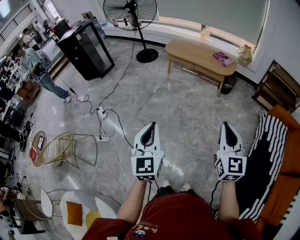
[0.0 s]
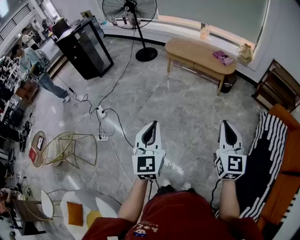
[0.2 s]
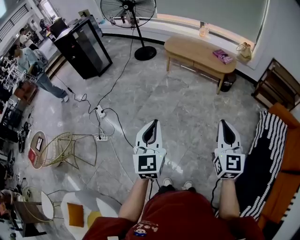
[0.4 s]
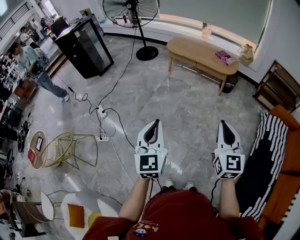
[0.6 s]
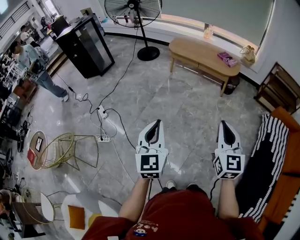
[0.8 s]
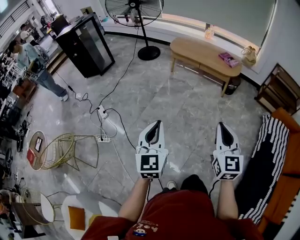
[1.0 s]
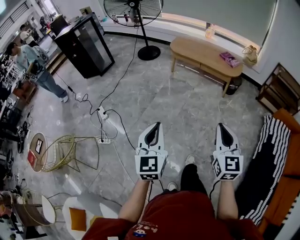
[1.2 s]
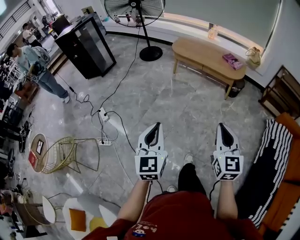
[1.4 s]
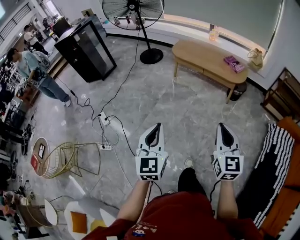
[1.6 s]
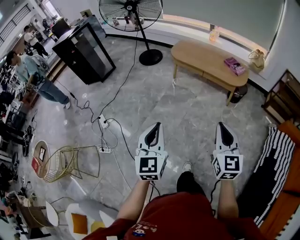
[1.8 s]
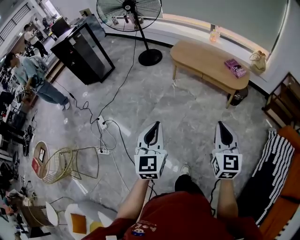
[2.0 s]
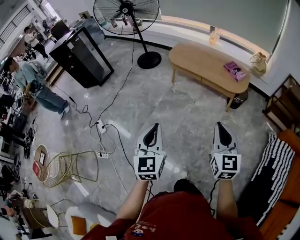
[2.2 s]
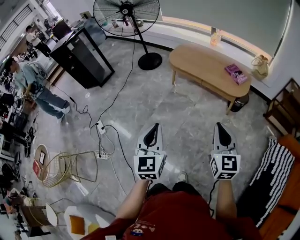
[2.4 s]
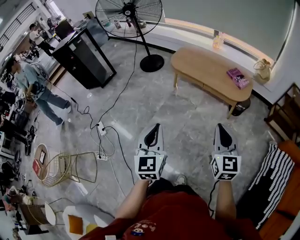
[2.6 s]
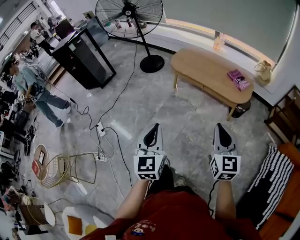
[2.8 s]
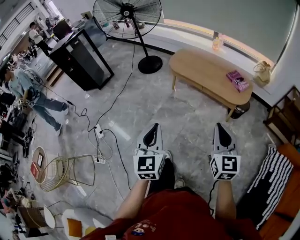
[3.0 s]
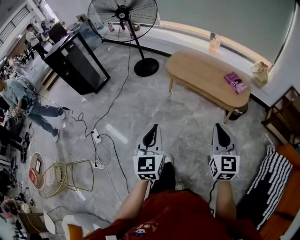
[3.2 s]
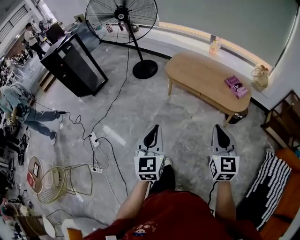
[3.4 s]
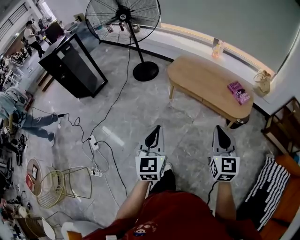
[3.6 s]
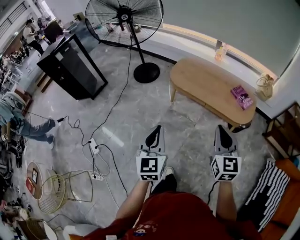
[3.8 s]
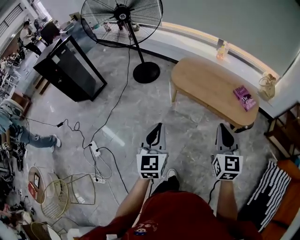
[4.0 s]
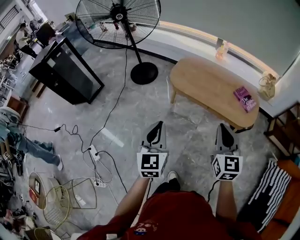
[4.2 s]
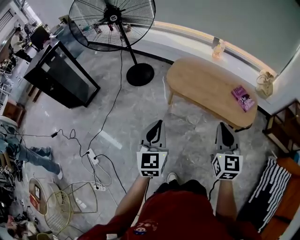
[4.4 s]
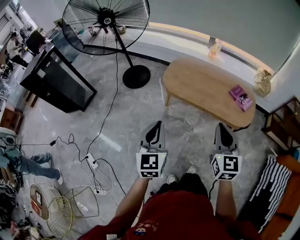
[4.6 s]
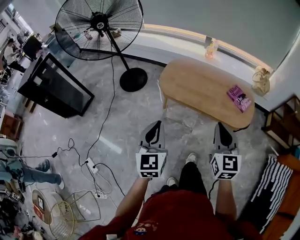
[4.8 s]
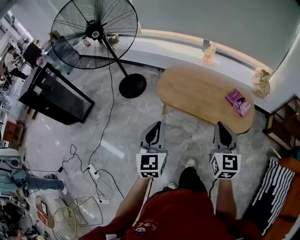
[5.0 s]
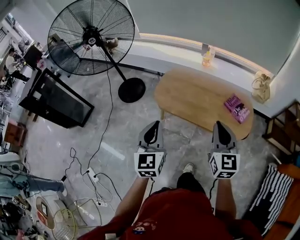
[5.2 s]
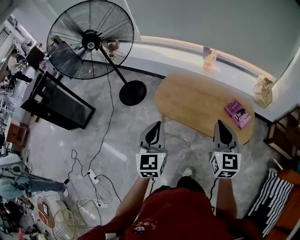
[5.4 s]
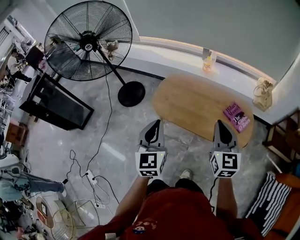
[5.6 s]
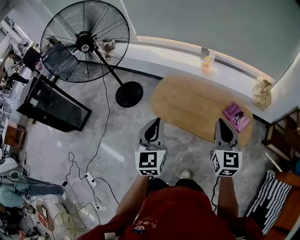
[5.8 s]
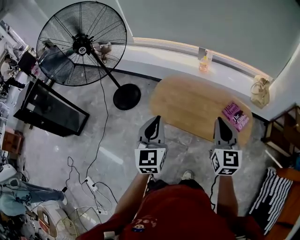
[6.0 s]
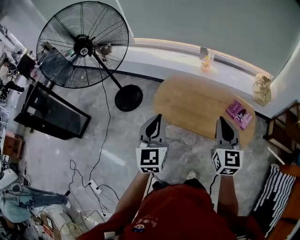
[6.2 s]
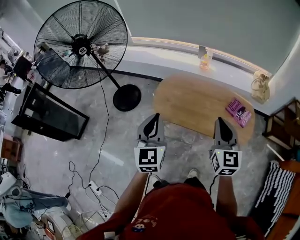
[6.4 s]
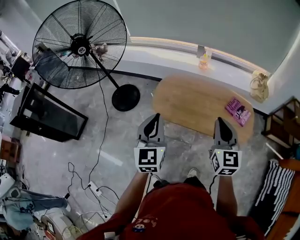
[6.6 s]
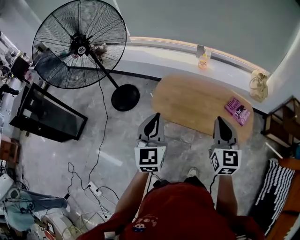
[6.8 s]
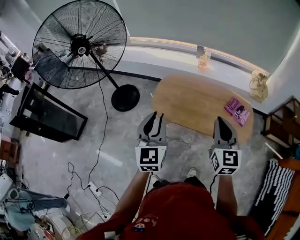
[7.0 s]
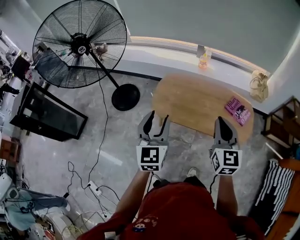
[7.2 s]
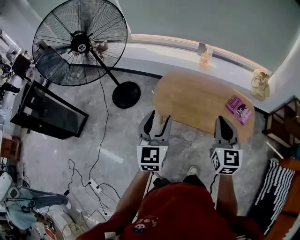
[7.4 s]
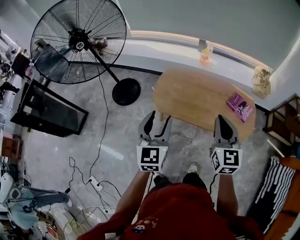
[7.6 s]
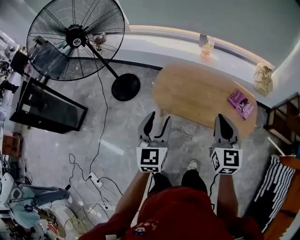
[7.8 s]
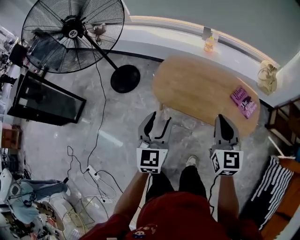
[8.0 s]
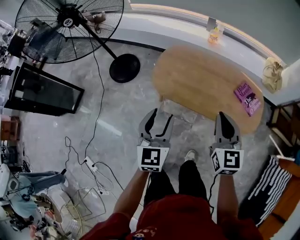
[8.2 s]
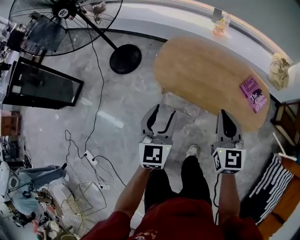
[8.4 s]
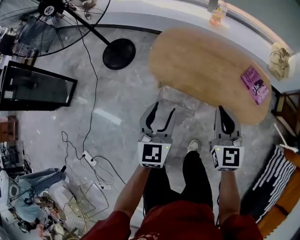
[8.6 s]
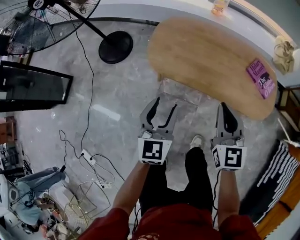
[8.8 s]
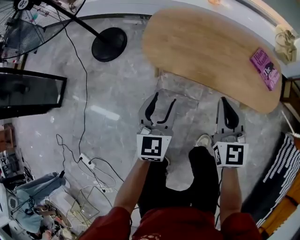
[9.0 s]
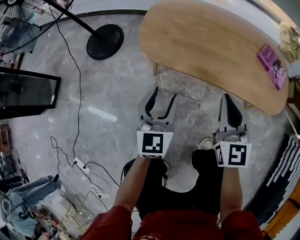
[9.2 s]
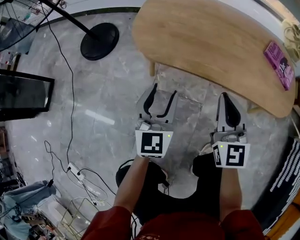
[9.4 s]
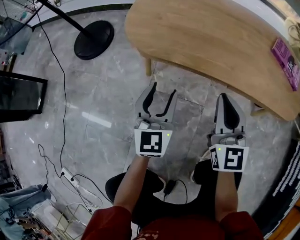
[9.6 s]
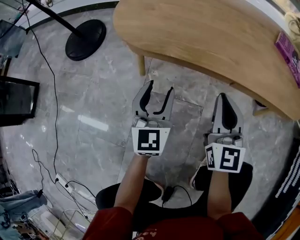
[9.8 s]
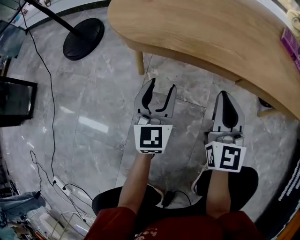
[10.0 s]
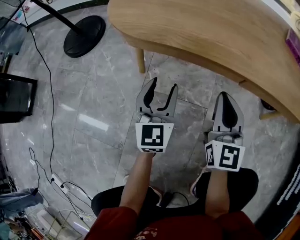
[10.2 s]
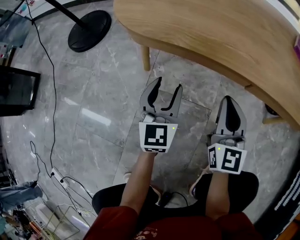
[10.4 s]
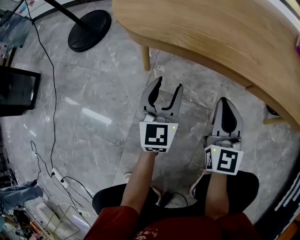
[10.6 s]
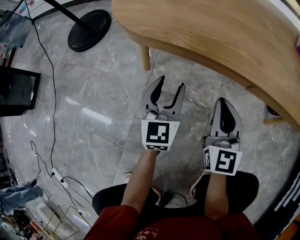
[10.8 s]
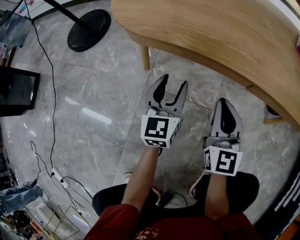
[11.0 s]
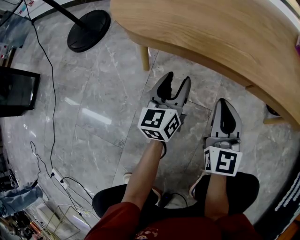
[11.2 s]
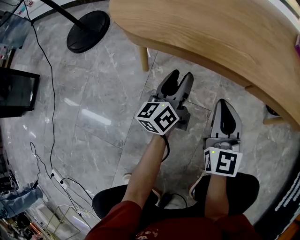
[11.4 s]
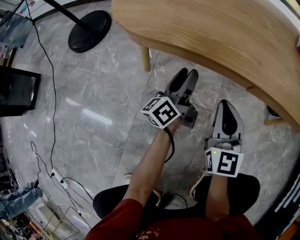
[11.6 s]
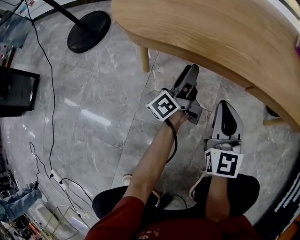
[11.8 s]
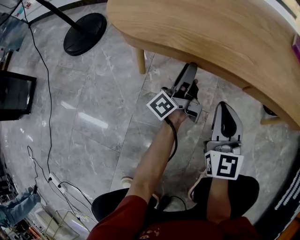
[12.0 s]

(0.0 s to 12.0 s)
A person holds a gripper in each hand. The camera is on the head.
0.0 s - 1.6 s: The right gripper travels forward and to the left by approximately 20 cm, while the left gripper shifts about 15 cm forward.
1.6 s - 3.0 s: Both grippers travel together forward, approximately 25 cm.
3.0 s - 4.4 s: The grippers both shift forward by some 35 cm.
4.4 s - 6.0 s: The grippers both shift forward and to the right by some 30 cm.
6.0 s - 7.6 s: The left gripper opens its fingers; the right gripper heads to the left, covering some 5 cm.
7.6 s - 9.0 s: Both grippers move downward, about 30 cm.
9.0 s - 10.4 s: Both grippers move downward, roughly 40 cm.
10.4 s - 12.0 s: The left gripper goes some 10 cm forward and to the right, and rolls counterclockwise, seen from behind, by about 80 degrees.

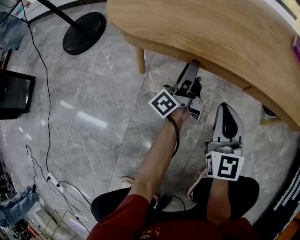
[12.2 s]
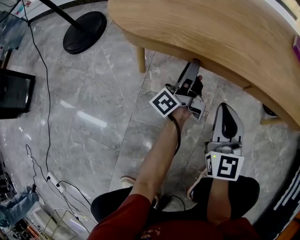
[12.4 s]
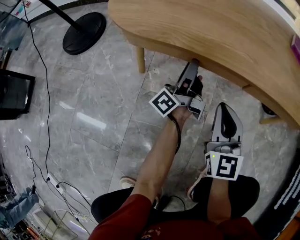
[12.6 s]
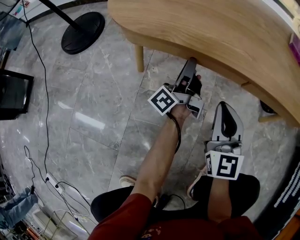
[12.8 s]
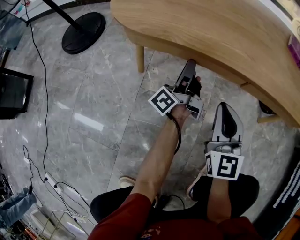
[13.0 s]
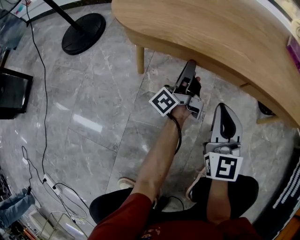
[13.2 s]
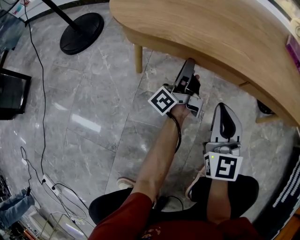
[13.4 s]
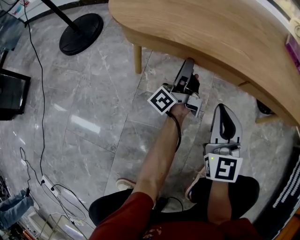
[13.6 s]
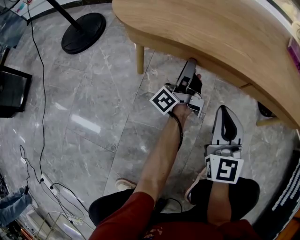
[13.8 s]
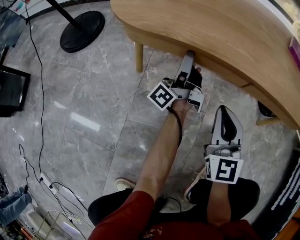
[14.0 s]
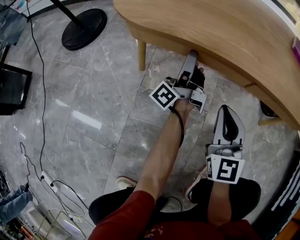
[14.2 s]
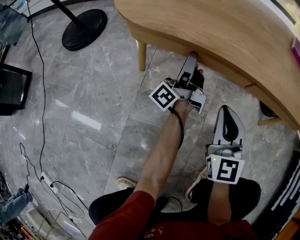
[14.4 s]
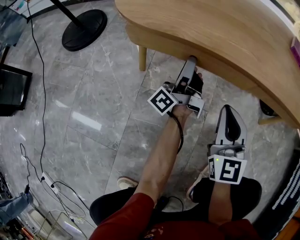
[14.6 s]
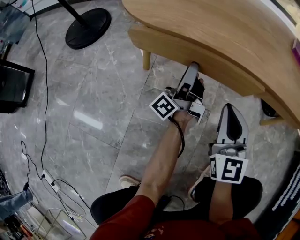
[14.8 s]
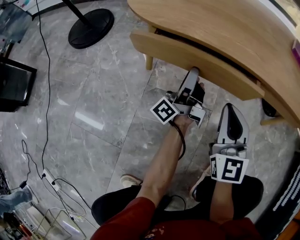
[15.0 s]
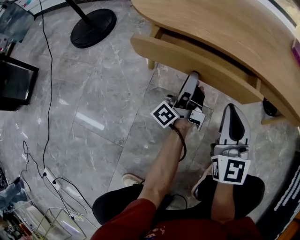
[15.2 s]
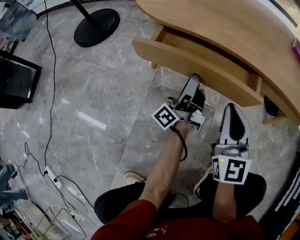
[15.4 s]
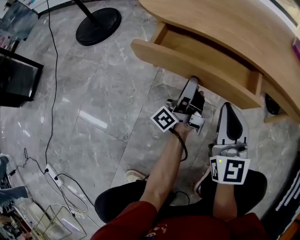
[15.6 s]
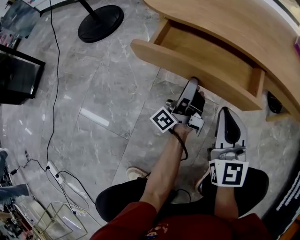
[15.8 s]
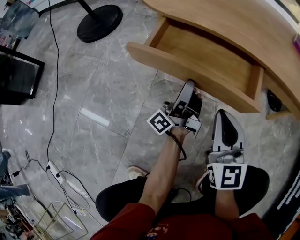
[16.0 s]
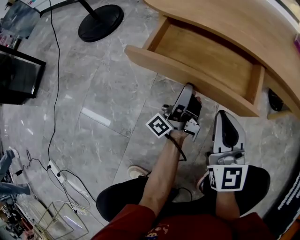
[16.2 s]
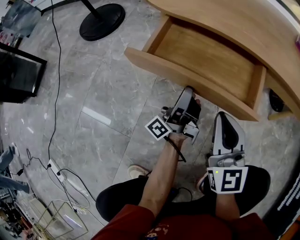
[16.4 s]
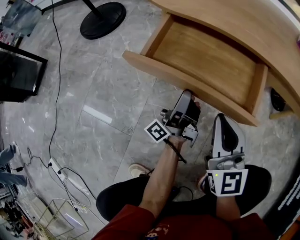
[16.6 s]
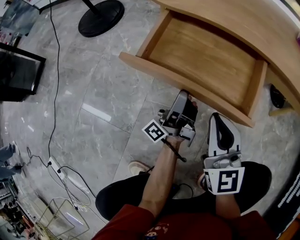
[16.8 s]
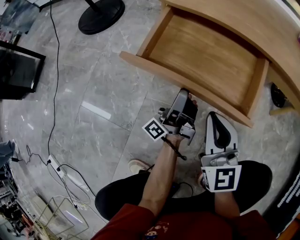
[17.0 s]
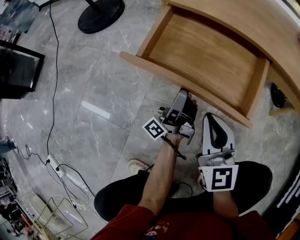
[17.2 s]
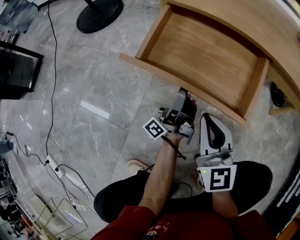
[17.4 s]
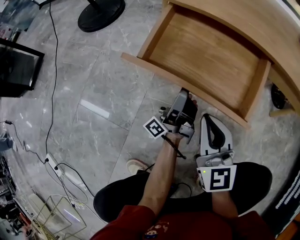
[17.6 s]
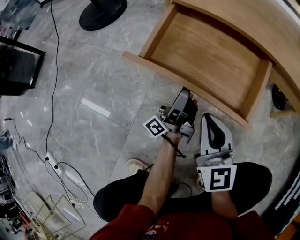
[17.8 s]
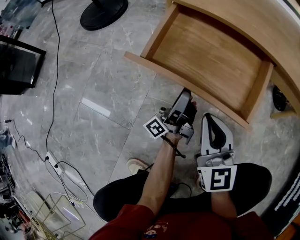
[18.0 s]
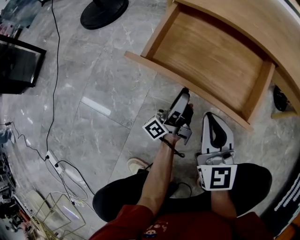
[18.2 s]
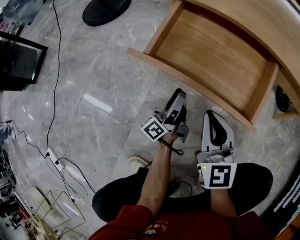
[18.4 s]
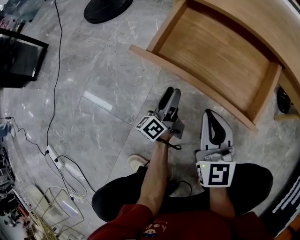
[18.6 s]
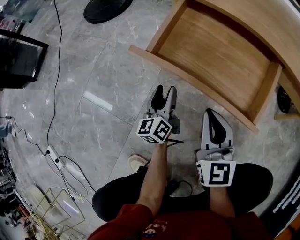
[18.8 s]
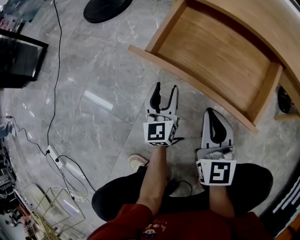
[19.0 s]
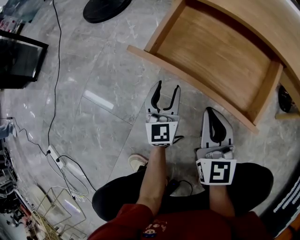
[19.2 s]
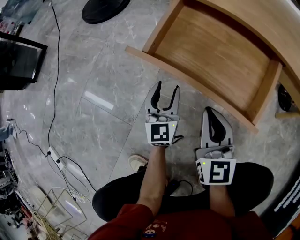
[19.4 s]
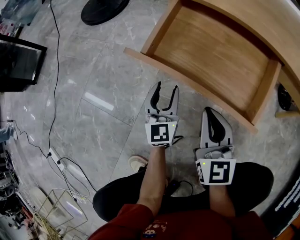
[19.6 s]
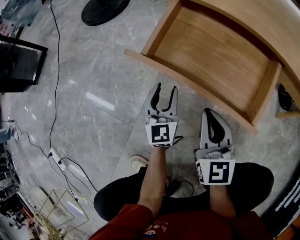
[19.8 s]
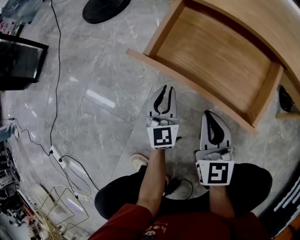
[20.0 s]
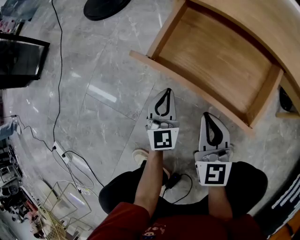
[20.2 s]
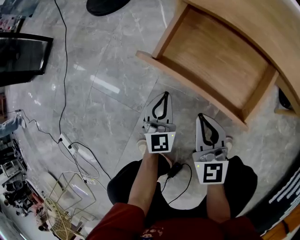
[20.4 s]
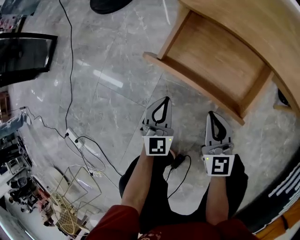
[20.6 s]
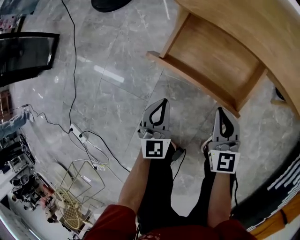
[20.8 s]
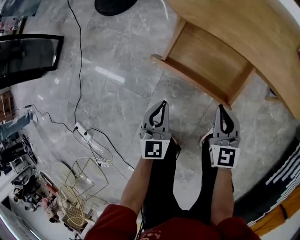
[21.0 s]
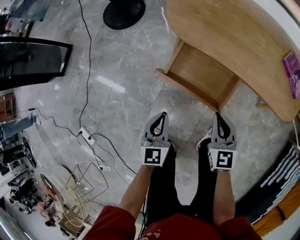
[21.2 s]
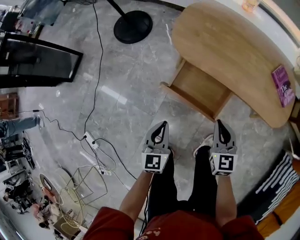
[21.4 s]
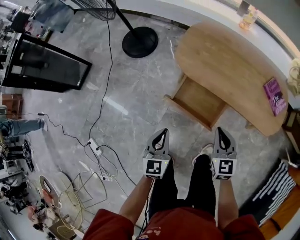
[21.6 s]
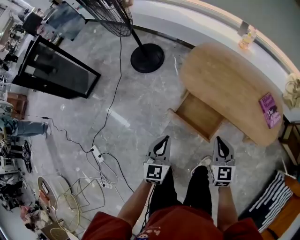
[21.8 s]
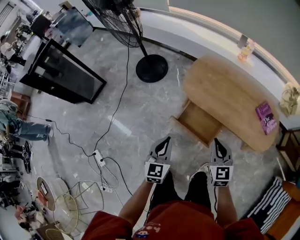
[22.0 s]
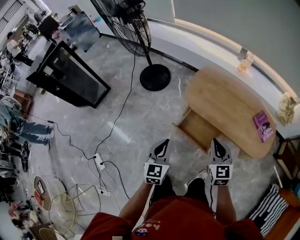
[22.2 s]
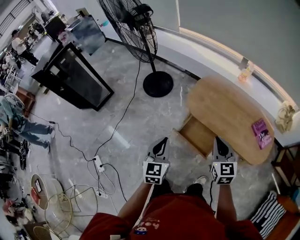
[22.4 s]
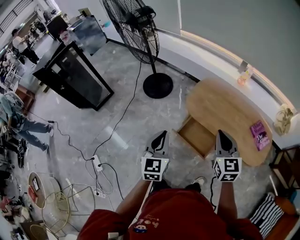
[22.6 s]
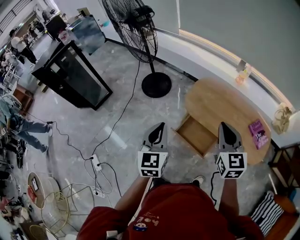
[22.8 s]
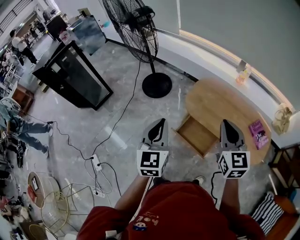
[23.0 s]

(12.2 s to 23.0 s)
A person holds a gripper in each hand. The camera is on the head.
12.2 s - 13.8 s: There are only small adjustments of the grippers.
13.8 s - 15.2 s: The left gripper shifts some 10 cm backward.
15.2 s - 16.8 s: Both grippers travel together backward and to the left, about 10 cm.
16.8 s - 18.4 s: The left gripper moves downward, some 10 cm, and swivels approximately 20 degrees. The right gripper changes place by roughly 5 cm.
18.4 s - 20.0 s: The left gripper twists some 80 degrees clockwise, seen from behind, and closes.
20.0 s - 21.4 s: The two grippers go about 35 cm upward.
21.4 s - 23.0 s: The grippers both shift upward by approximately 40 cm.

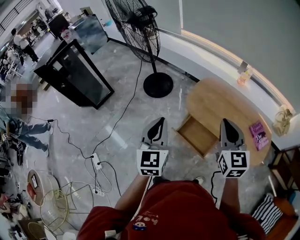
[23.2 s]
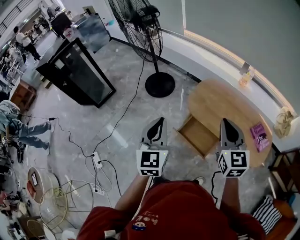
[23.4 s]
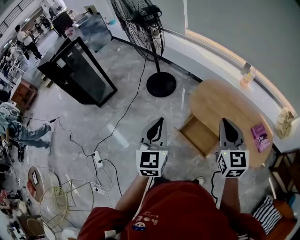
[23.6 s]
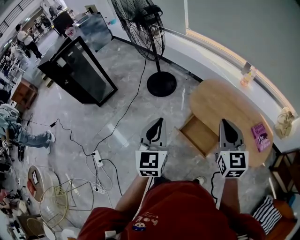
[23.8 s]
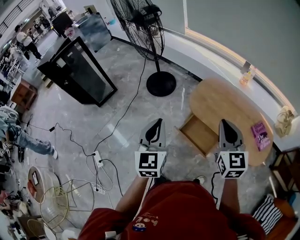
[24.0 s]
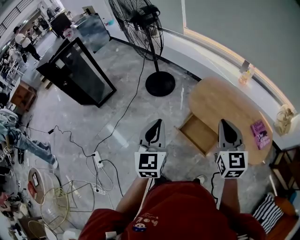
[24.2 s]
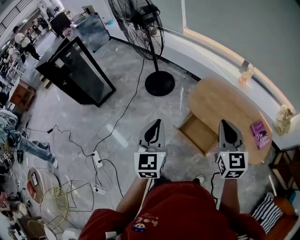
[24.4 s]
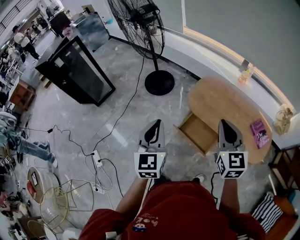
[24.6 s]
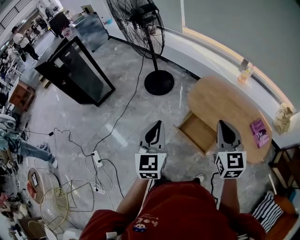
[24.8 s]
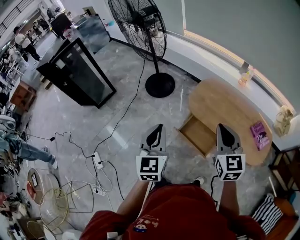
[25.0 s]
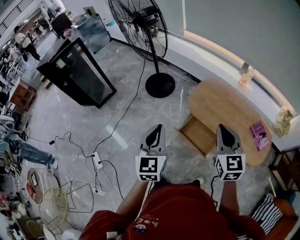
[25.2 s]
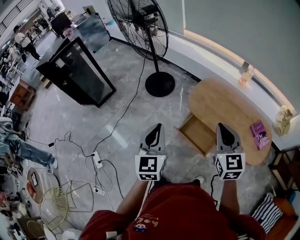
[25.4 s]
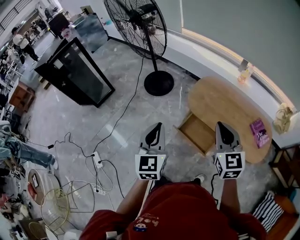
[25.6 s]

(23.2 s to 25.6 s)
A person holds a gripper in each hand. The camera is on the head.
23.2 s - 25.6 s: The grippers make only small movements.
